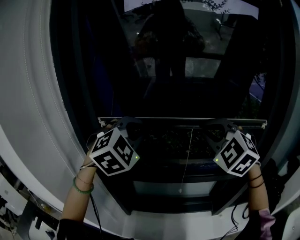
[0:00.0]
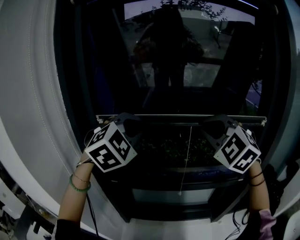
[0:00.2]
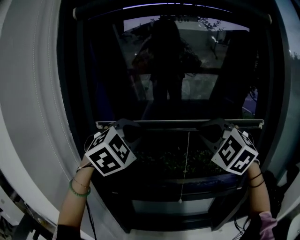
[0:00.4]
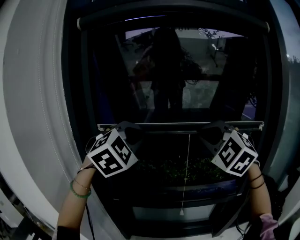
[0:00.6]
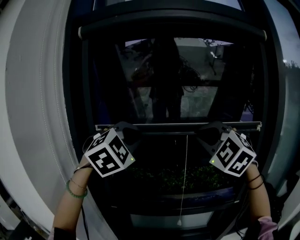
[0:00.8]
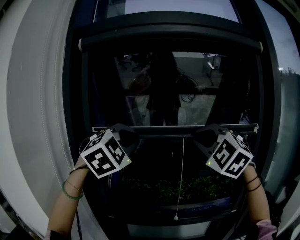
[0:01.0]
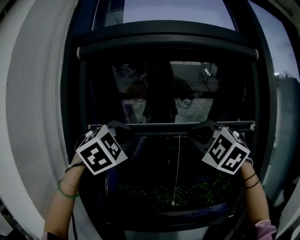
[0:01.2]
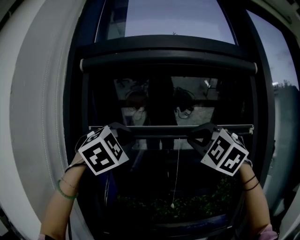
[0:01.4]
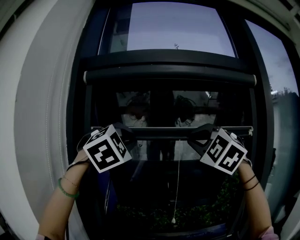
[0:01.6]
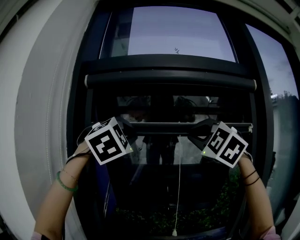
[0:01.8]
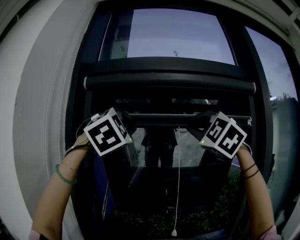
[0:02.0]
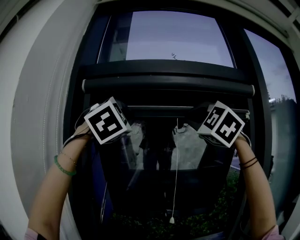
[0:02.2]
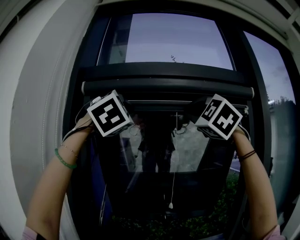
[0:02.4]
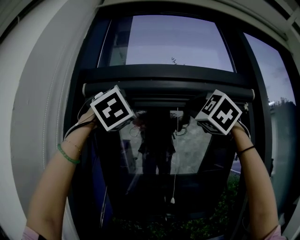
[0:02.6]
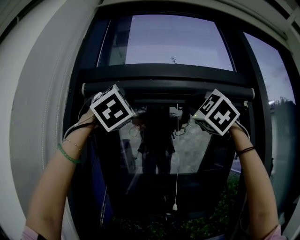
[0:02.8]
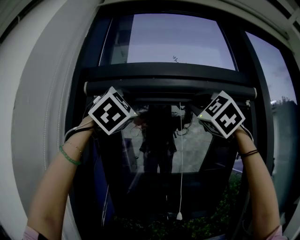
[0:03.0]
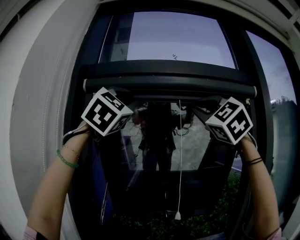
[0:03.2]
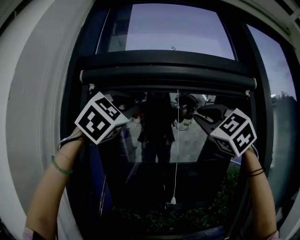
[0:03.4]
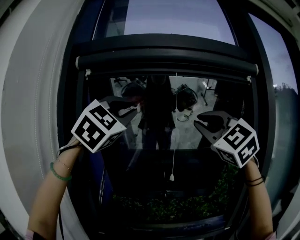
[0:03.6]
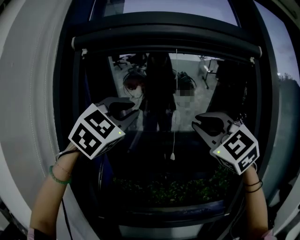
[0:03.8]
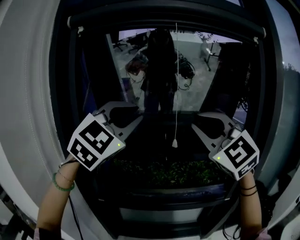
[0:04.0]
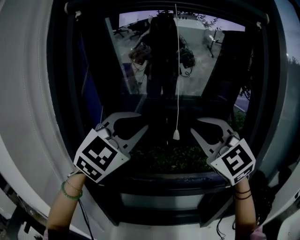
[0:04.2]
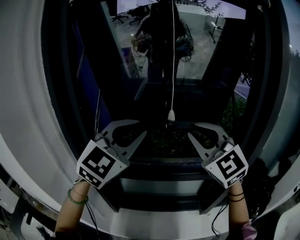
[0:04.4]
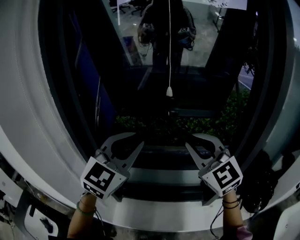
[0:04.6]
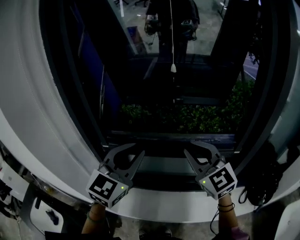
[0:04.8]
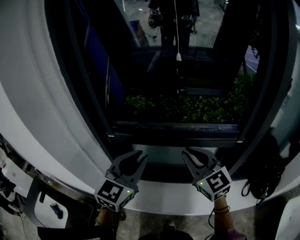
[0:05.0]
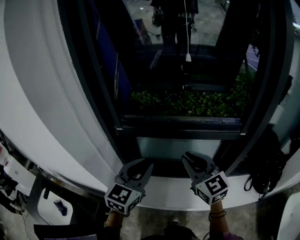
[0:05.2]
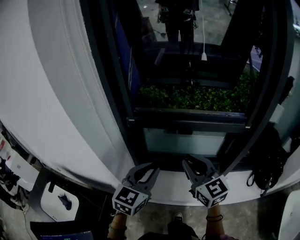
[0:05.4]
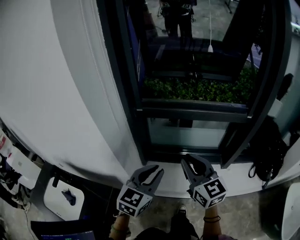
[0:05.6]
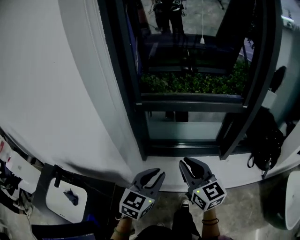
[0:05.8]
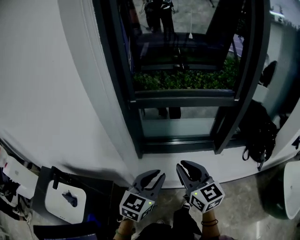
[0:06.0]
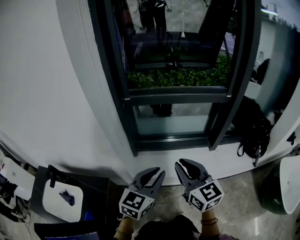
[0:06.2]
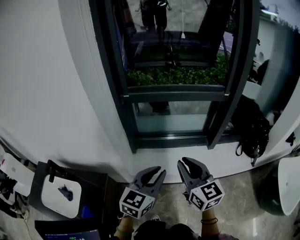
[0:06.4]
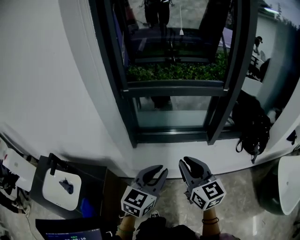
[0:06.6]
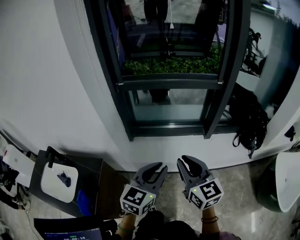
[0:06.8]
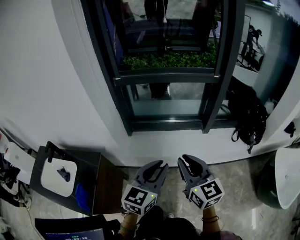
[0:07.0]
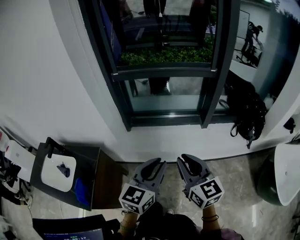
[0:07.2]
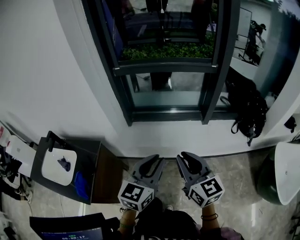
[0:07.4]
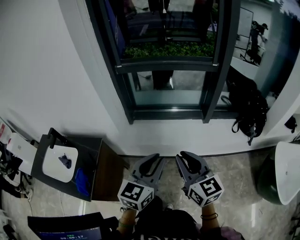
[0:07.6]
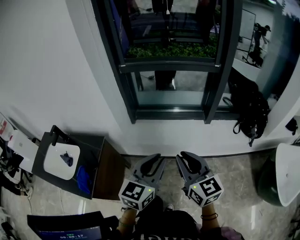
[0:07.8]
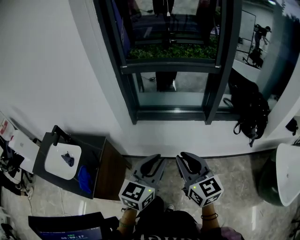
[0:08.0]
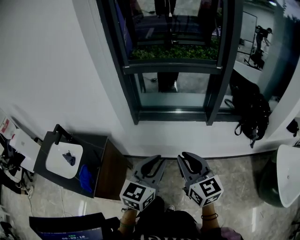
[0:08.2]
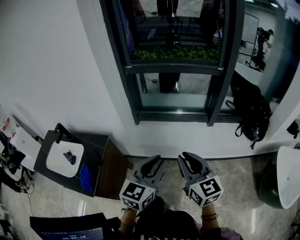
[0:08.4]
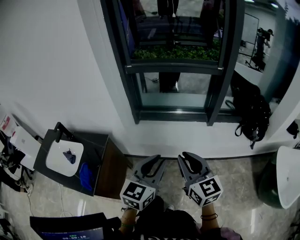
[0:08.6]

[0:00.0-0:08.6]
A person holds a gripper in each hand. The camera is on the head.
0:00.0 to 0:01.4: Both grippers move upward, some 25 cm.
0:01.4 to 0:02.8: The grippers both shift upward by some 20 cm.
0:02.8 to 0:04.4: Both grippers travel together downward, some 40 cm. The left gripper rotates roughly 40 degrees; the right gripper turns by approximately 40 degrees.
0:04.4 to 0:05.8: Both grippers travel together backward, downward and to the left, approximately 50 cm. The left gripper rotates some 40 degrees. Meanwhile the right gripper rolls clockwise, seen from behind, by approximately 40 degrees.
0:05.8 to 0:07.2: Both grippers move backward and to the right, approximately 25 cm.
0:07.2 to 0:08.6: Both grippers travel together backward, roughly 5 cm.

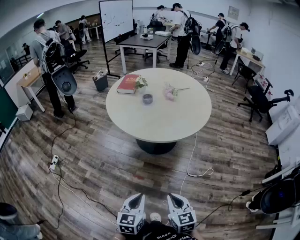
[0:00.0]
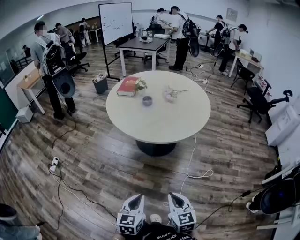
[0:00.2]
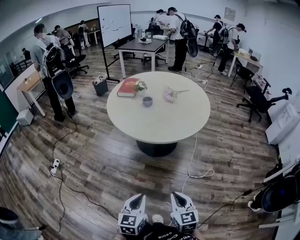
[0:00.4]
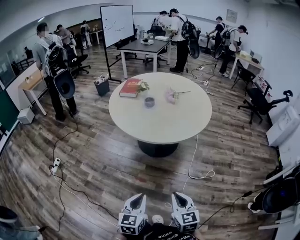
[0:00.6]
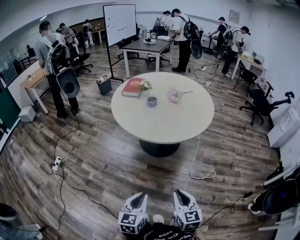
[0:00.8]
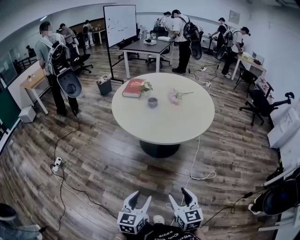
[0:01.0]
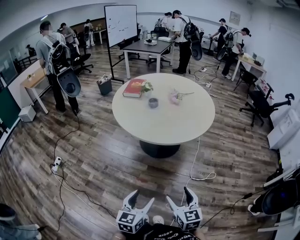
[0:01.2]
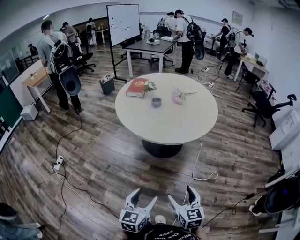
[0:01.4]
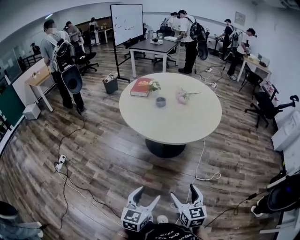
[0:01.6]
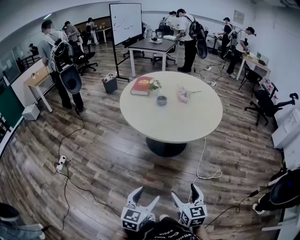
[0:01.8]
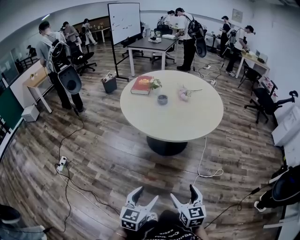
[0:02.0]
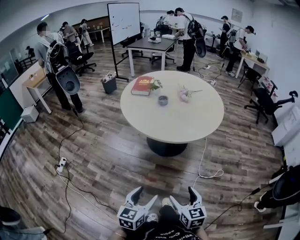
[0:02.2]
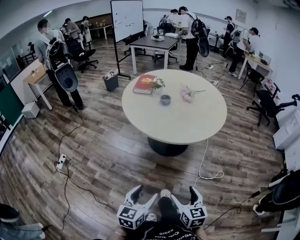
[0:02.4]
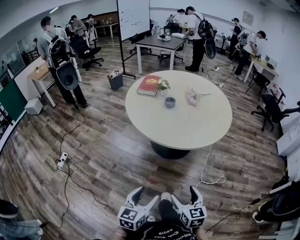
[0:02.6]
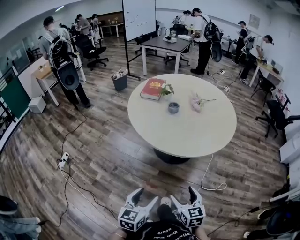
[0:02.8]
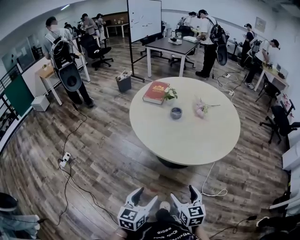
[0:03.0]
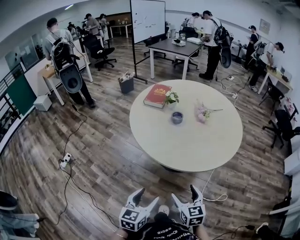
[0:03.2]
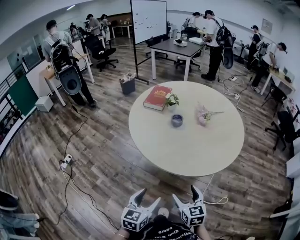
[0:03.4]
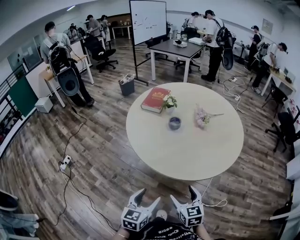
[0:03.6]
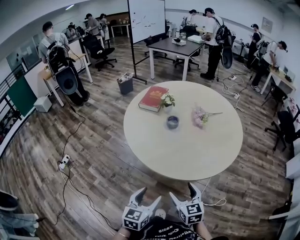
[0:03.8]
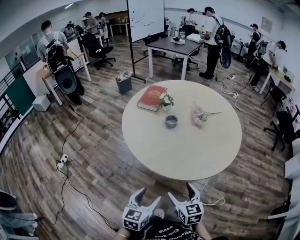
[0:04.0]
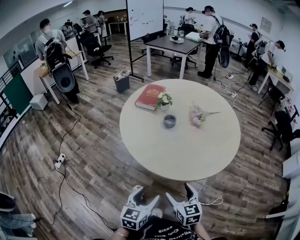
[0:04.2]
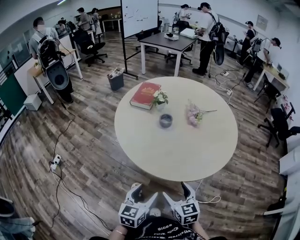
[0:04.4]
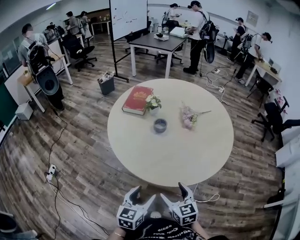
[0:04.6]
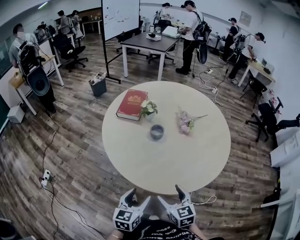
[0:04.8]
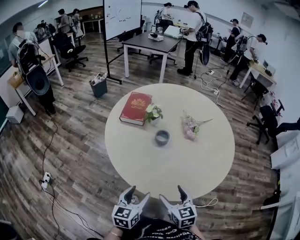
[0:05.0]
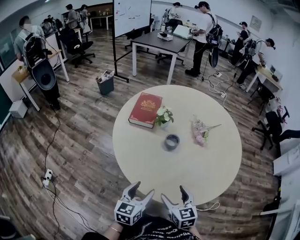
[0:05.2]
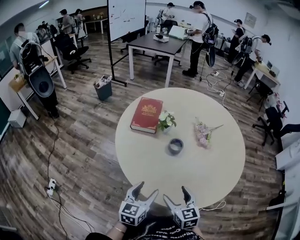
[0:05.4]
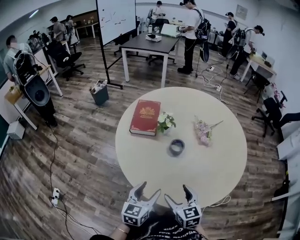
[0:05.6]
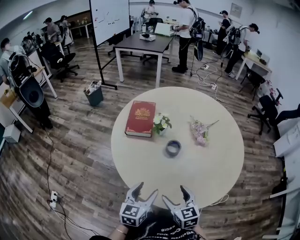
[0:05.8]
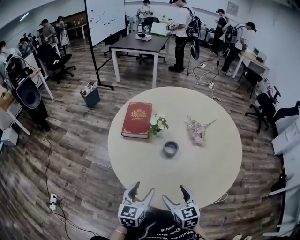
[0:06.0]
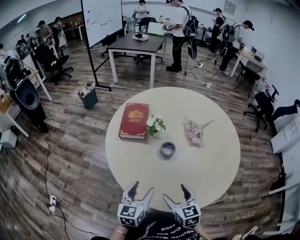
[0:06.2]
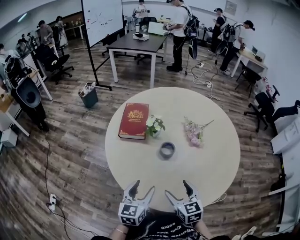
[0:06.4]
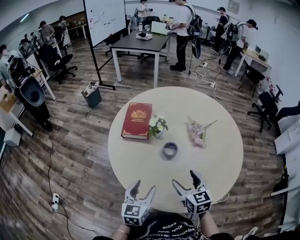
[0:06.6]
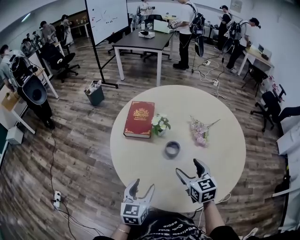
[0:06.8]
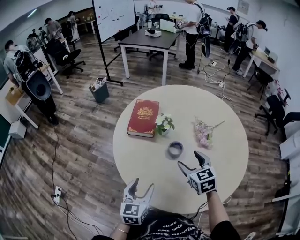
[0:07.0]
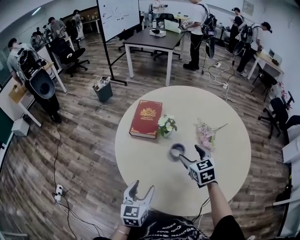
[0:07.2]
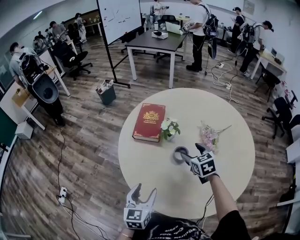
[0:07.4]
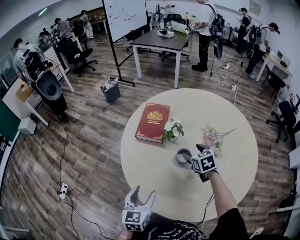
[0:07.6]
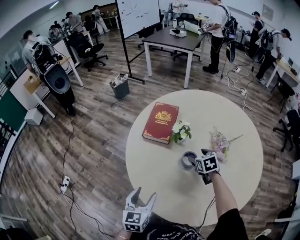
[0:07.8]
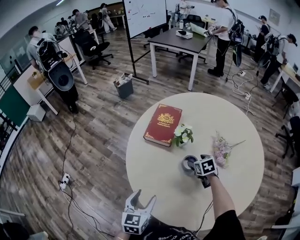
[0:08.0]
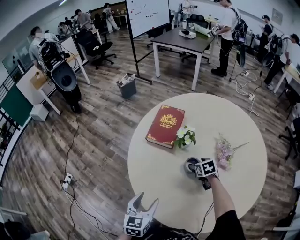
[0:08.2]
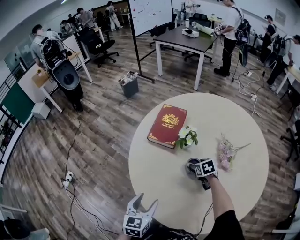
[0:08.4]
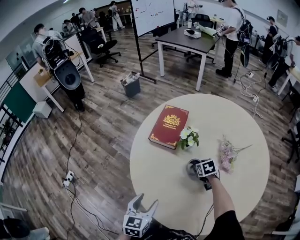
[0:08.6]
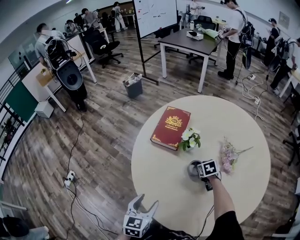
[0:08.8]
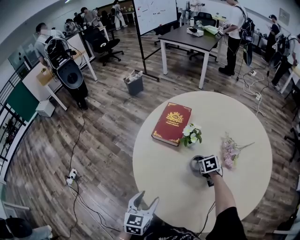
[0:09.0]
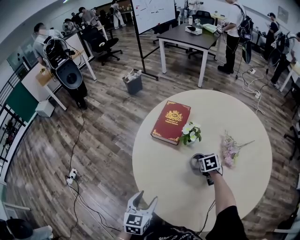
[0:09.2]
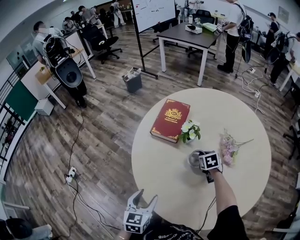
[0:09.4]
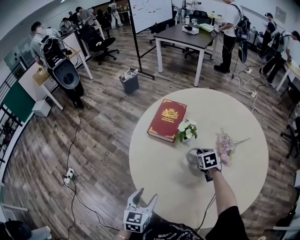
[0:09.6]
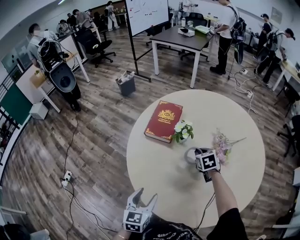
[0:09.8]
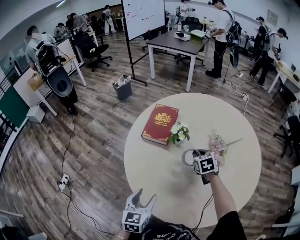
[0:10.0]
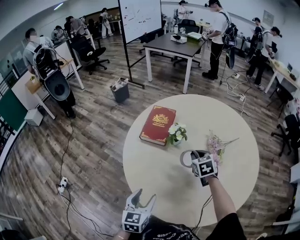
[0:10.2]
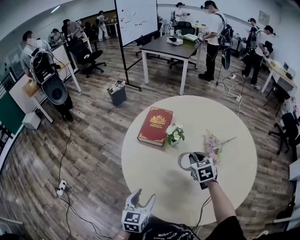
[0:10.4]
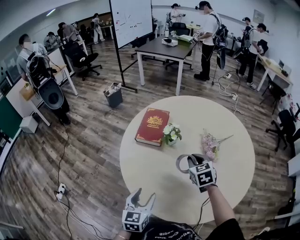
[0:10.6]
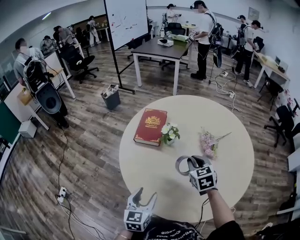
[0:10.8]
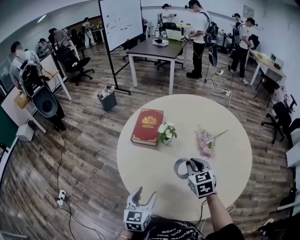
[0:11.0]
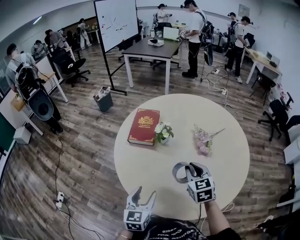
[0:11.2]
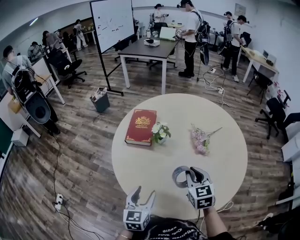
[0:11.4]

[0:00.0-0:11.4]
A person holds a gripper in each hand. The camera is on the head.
0:00.0 to 0:01.4: The left gripper opens. The right gripper opens up.
0:01.4 to 0:02.8: Both grippers travel together forward and to the left, roughly 15 cm.
0:02.8 to 0:04.2: The right gripper heads forward, covering some 20 cm. The left gripper is displaced forward and to the right by some 20 cm.
0:04.2 to 0:05.6: The grippers both shift forward and to the left by some 30 cm.
0:05.6 to 0:07.2: The left gripper changes place by some 5 cm, while the right gripper shifts roughly 25 cm forward.
0:07.2 to 0:08.6: The right gripper moves downward and forward, about 20 cm, and turns by some 30 degrees.
0:08.6 to 0:10.0: The right gripper moves upward, approximately 10 cm, and closes.
0:10.0 to 0:11.4: The right gripper travels backward and upward by approximately 20 cm, and changes its angle by about 20 degrees.

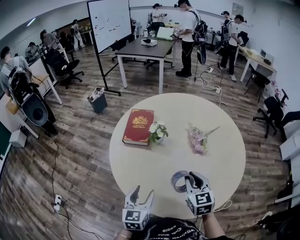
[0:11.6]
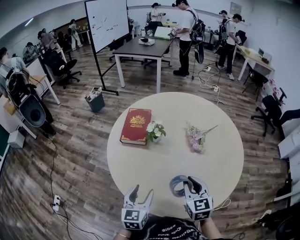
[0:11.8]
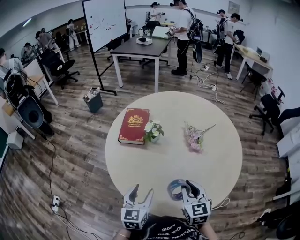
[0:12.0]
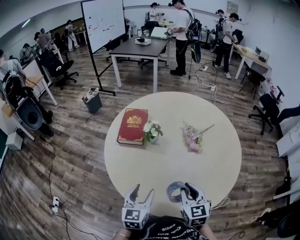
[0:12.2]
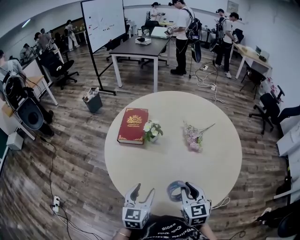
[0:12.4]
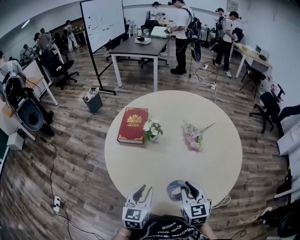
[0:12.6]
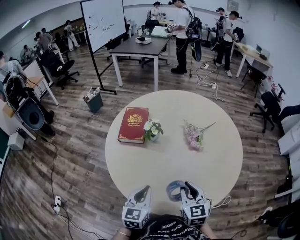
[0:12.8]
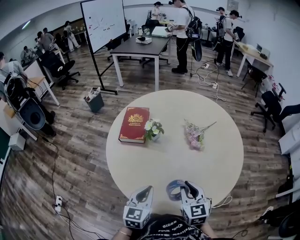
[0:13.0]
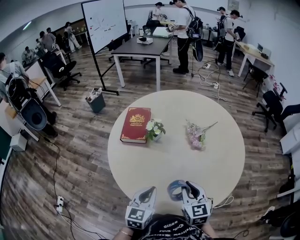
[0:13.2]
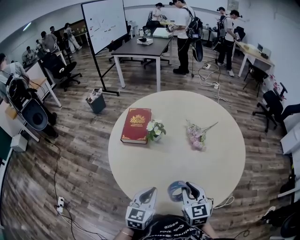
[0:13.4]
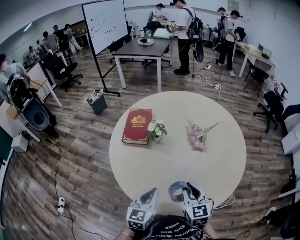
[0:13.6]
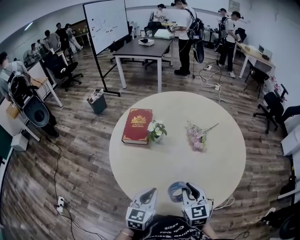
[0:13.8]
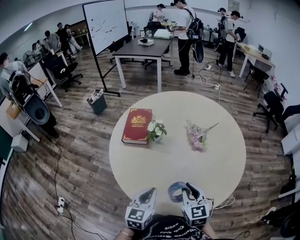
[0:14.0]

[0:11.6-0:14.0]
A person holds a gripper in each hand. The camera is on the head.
0:11.6 to 0:12.8: The right gripper heads backward, covering some 5 cm. Meanwhile the left gripper closes.
0:12.8 to 0:14.0: The grippers make only small movements.

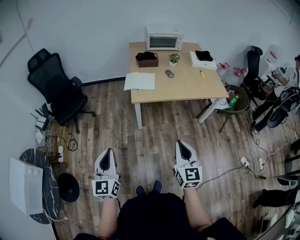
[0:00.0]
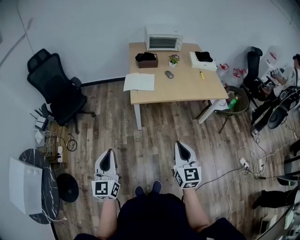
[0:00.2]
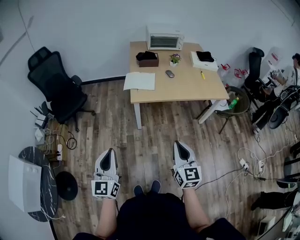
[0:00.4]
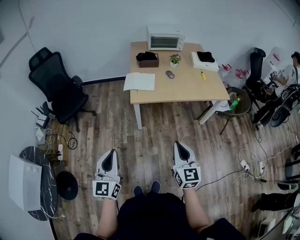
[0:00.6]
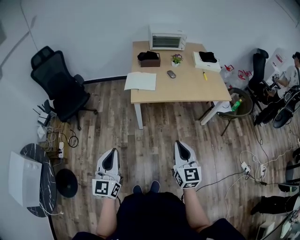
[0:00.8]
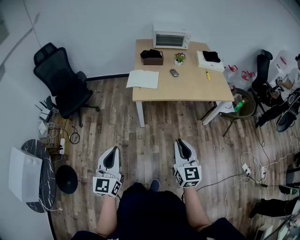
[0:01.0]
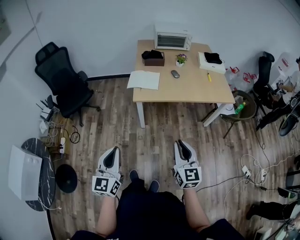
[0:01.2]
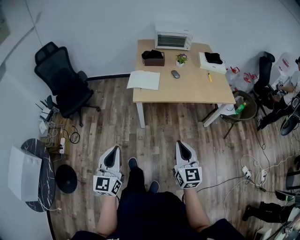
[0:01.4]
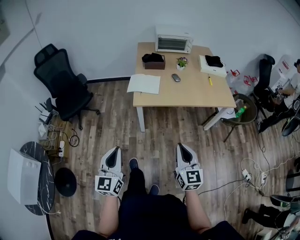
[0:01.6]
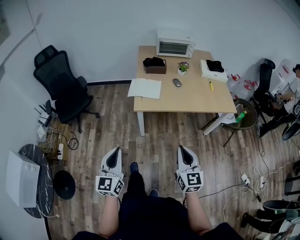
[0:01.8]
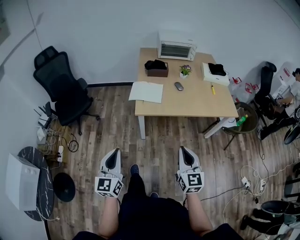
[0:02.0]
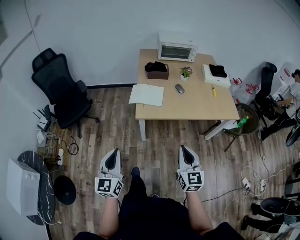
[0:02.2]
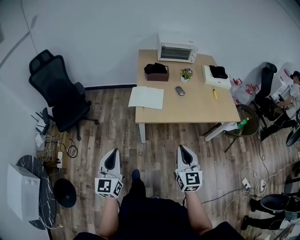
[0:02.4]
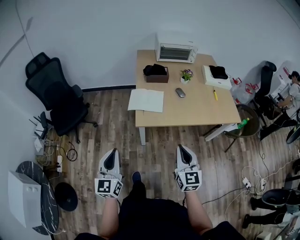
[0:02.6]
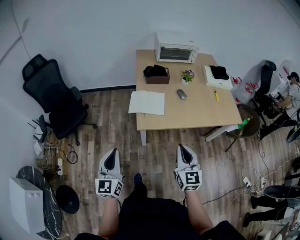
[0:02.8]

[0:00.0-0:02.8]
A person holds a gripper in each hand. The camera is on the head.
0:00.0 to 0:01.4: The left gripper is displaced to the right by about 10 cm. Meanwhile the right gripper changes place by approximately 5 cm.
0:01.4 to 0:02.8: The two grippers go some 25 cm forward.
